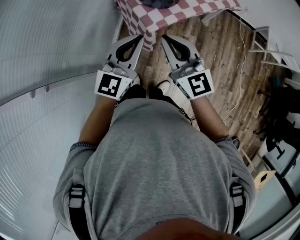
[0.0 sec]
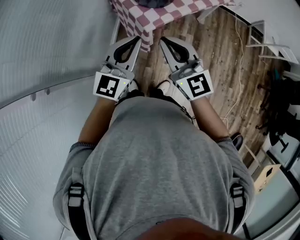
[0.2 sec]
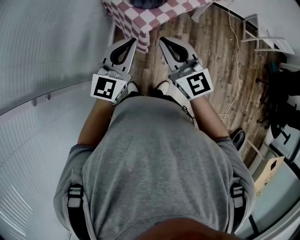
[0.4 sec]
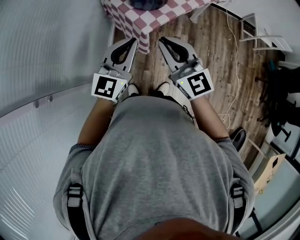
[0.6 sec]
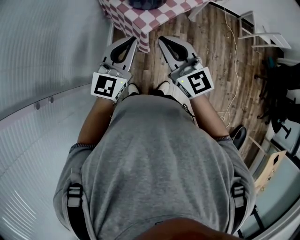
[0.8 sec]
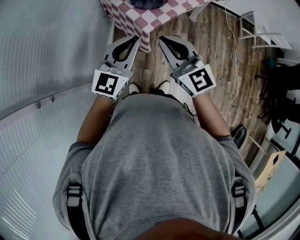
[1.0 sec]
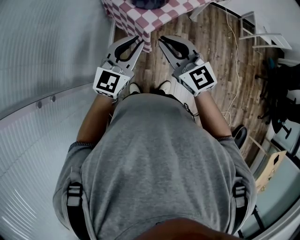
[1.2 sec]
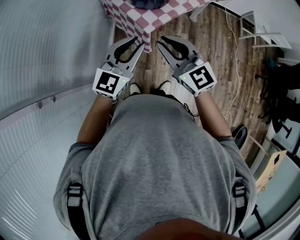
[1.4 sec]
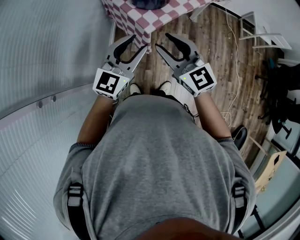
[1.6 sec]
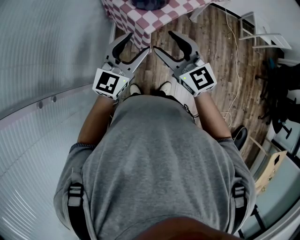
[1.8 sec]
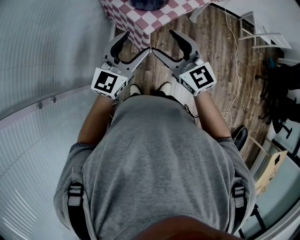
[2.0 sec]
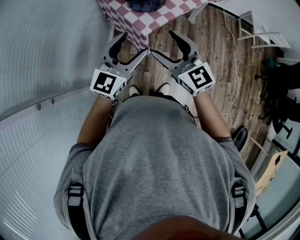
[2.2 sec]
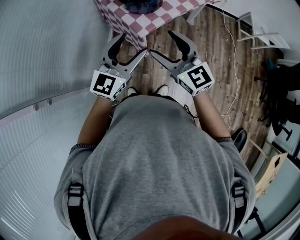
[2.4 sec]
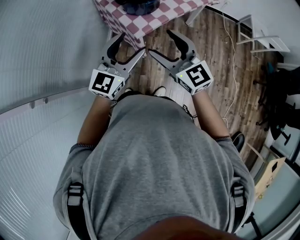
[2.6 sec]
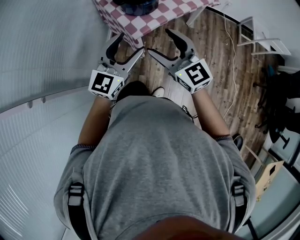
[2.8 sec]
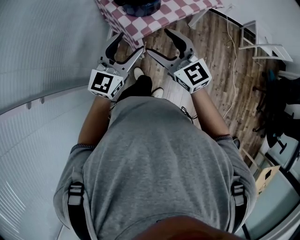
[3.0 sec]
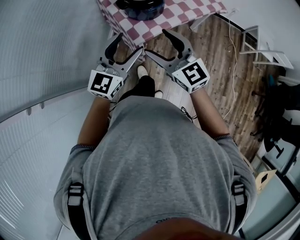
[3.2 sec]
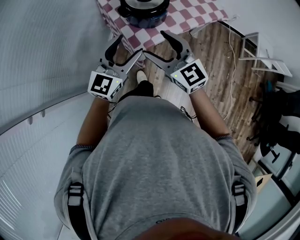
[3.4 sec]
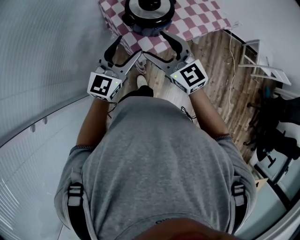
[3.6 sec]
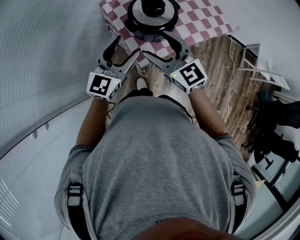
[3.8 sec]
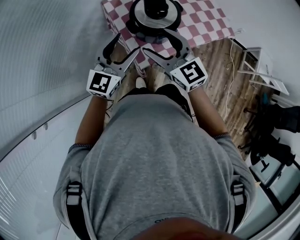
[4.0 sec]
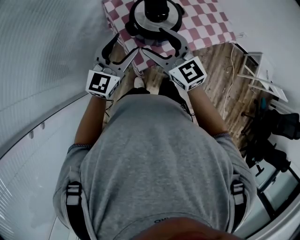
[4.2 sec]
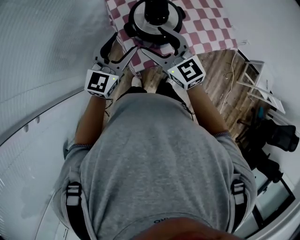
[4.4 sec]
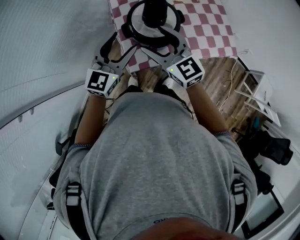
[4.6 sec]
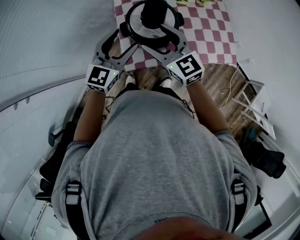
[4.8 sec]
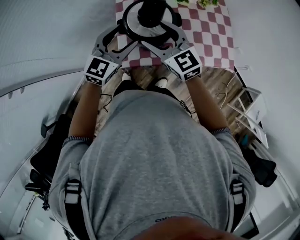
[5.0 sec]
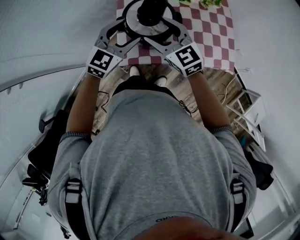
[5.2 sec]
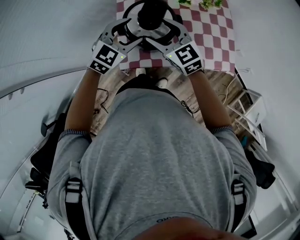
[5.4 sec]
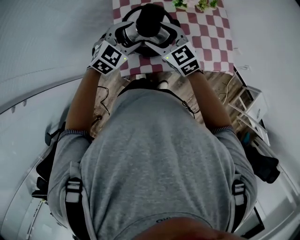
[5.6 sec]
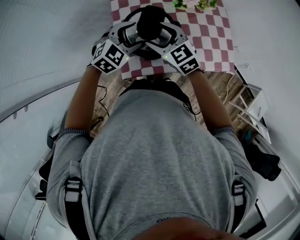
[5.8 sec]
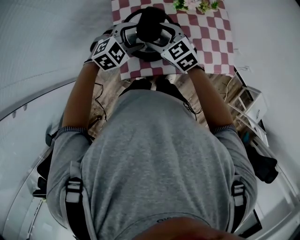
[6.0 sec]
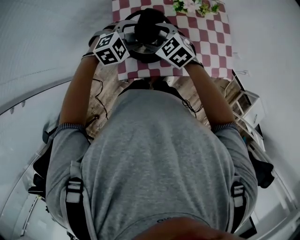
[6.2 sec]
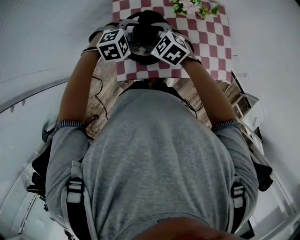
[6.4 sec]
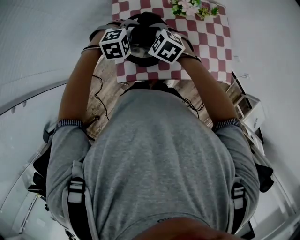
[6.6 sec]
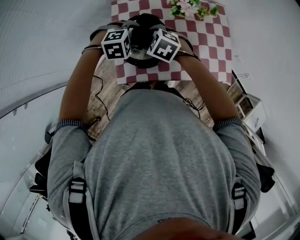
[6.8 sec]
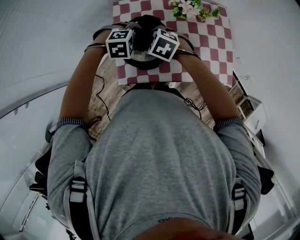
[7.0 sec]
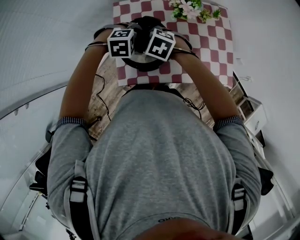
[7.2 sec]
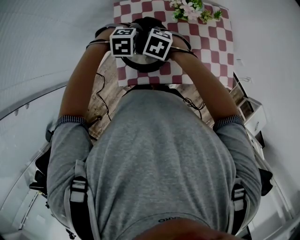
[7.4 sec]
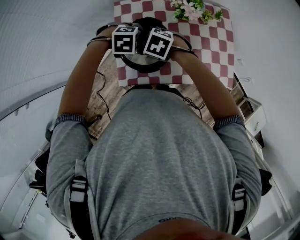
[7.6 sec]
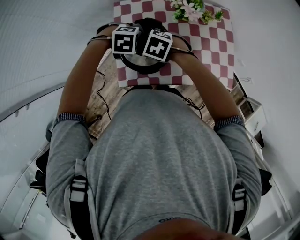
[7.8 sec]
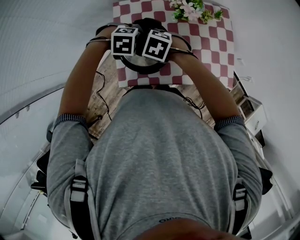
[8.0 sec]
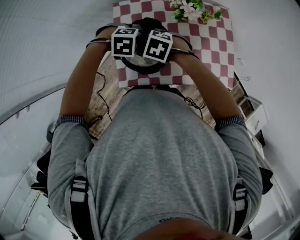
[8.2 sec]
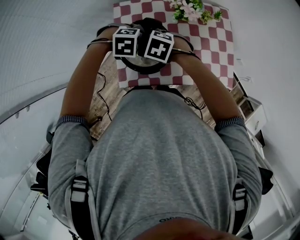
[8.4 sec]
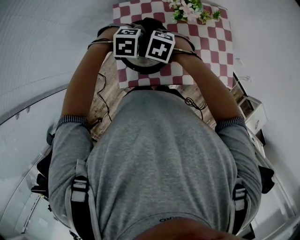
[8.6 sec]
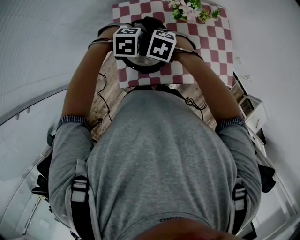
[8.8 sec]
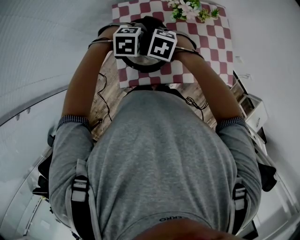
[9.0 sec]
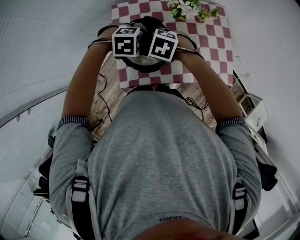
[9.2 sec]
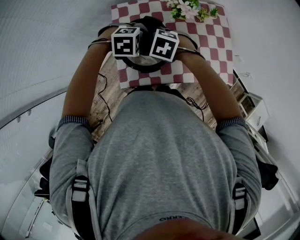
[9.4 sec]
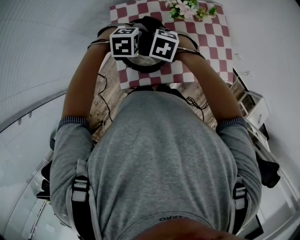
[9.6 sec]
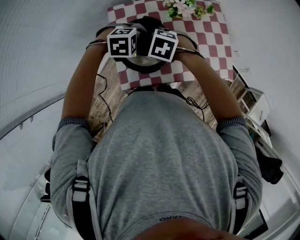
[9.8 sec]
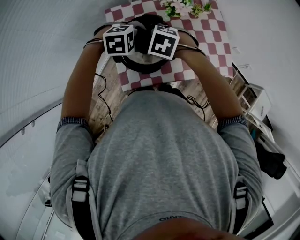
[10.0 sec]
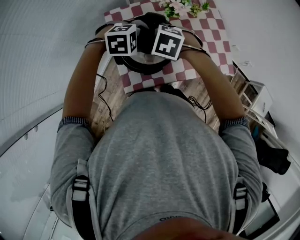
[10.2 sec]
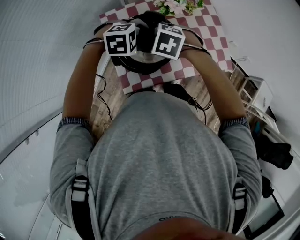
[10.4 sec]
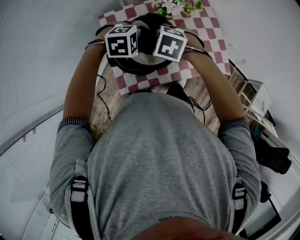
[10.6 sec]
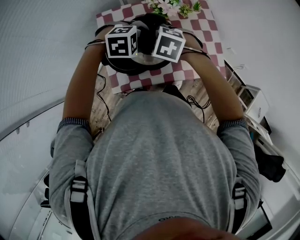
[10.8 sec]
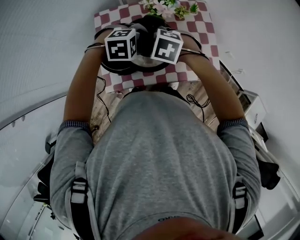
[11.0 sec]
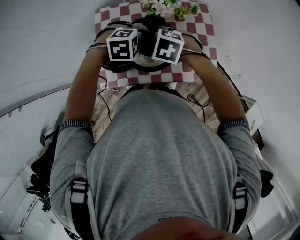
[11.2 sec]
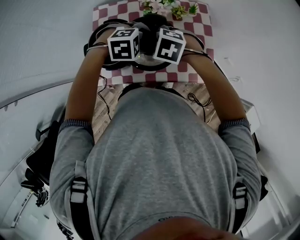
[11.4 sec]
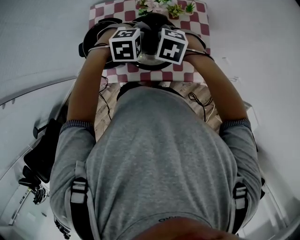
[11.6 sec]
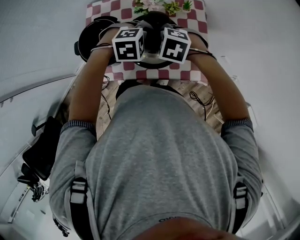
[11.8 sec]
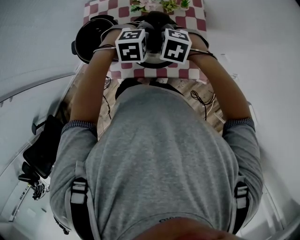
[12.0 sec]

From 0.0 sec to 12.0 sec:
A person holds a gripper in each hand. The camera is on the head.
From 0.0 sec to 1.6 sec: The left gripper shifts by about 5 cm, and opens. Meanwhile the right gripper moves some 5 cm, and opens its fingers.
From 1.6 sec to 3.0 sec: The two grippers go roughly 10 cm to the right. The left gripper opens its fingers. Meanwhile the right gripper opens.
From 3.0 sec to 4.4 sec: Both grippers move forward, about 25 cm.
From 4.4 sec to 6.0 sec: The right gripper moves forward, downward and to the right, approximately 15 cm, and swivels about 30 degrees; the left gripper is displaced to the right, downward and forward by about 20 cm, and tilts its fingers approximately 40 degrees downward.
From 6.0 sec to 7.6 sec: Both grippers travel together downward, some 5 cm. The left gripper tips its fingers downward by about 30 degrees, while the right gripper angles its fingers downward, by approximately 30 degrees.
From 7.6 sec to 9.0 sec: The grippers make only small movements.
From 9.0 sec to 10.4 sec: The left gripper ends up approximately 5 cm from where it was. The right gripper shifts by approximately 5 cm.
From 10.4 sec to 12.0 sec: The left gripper moves some 25 cm. Meanwhile the right gripper ends up about 25 cm from where it was.

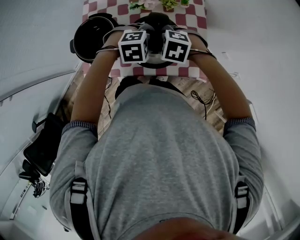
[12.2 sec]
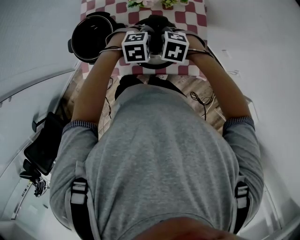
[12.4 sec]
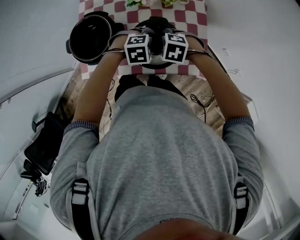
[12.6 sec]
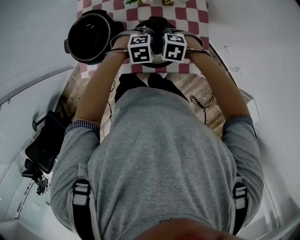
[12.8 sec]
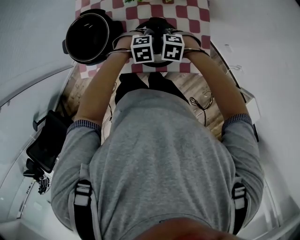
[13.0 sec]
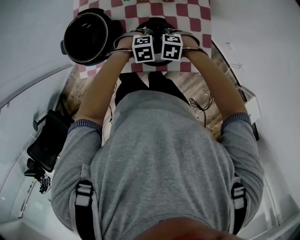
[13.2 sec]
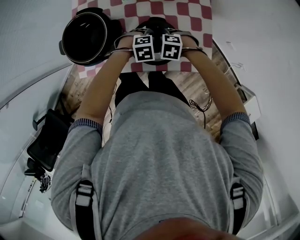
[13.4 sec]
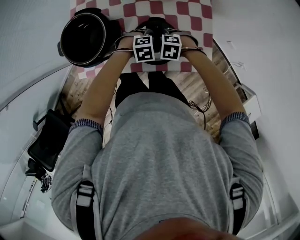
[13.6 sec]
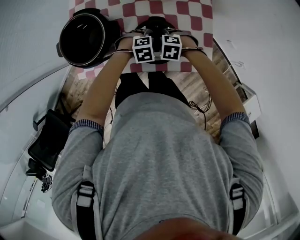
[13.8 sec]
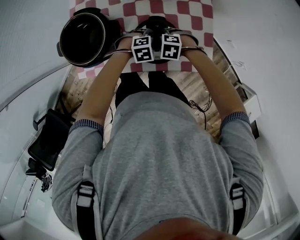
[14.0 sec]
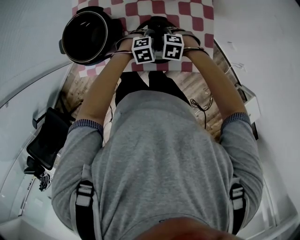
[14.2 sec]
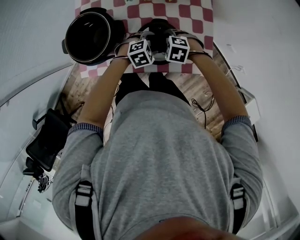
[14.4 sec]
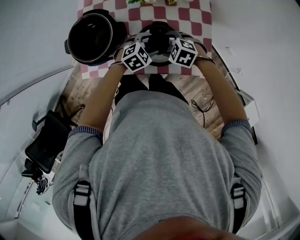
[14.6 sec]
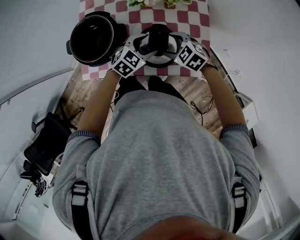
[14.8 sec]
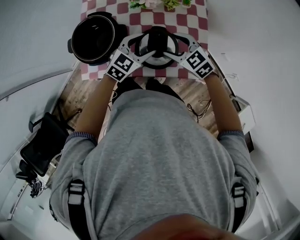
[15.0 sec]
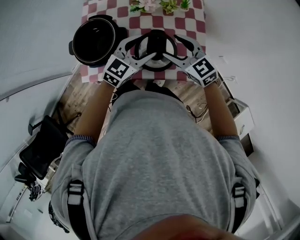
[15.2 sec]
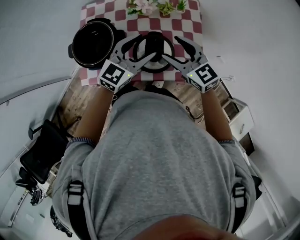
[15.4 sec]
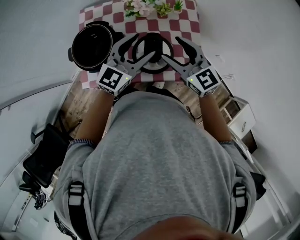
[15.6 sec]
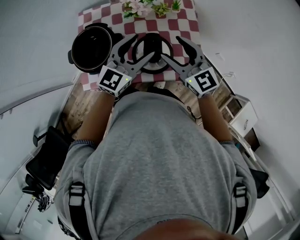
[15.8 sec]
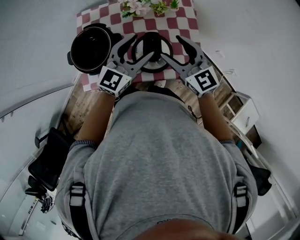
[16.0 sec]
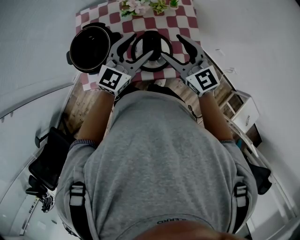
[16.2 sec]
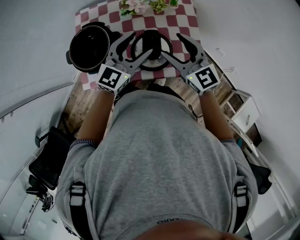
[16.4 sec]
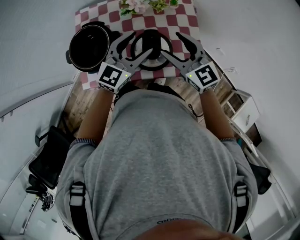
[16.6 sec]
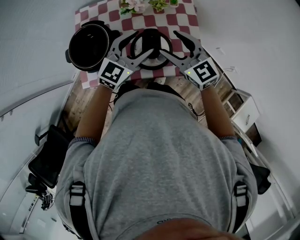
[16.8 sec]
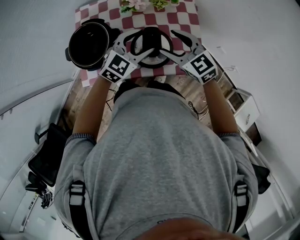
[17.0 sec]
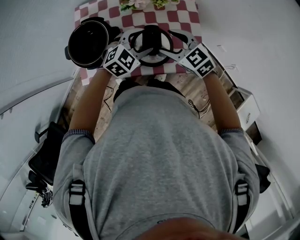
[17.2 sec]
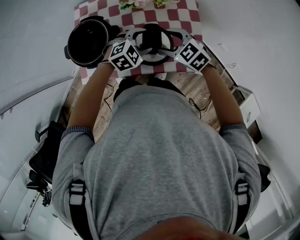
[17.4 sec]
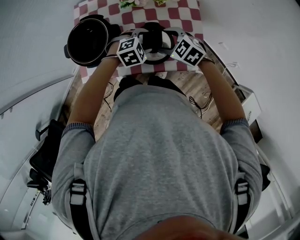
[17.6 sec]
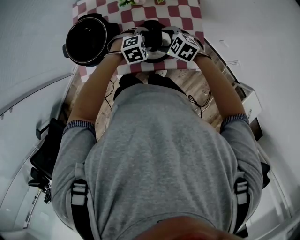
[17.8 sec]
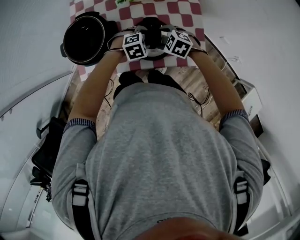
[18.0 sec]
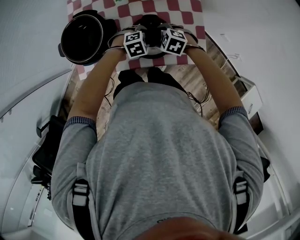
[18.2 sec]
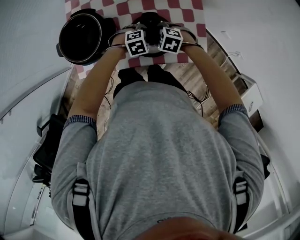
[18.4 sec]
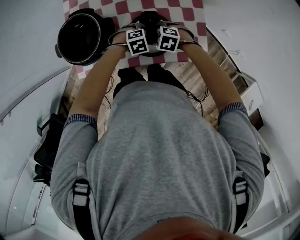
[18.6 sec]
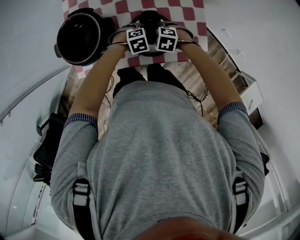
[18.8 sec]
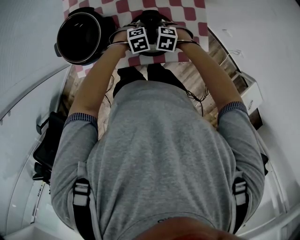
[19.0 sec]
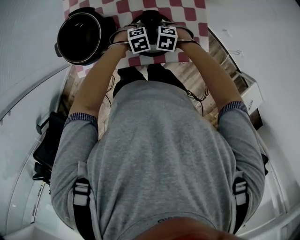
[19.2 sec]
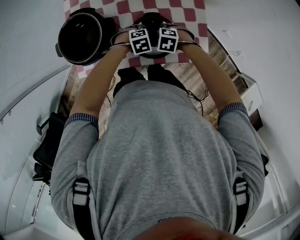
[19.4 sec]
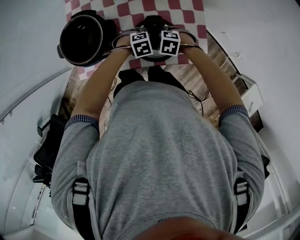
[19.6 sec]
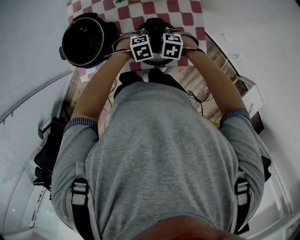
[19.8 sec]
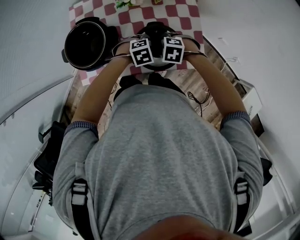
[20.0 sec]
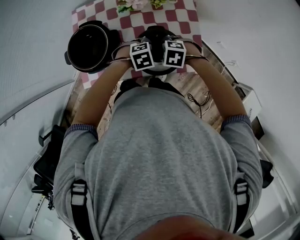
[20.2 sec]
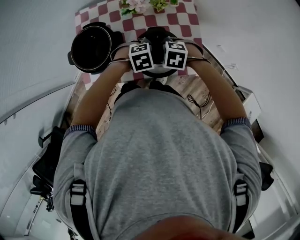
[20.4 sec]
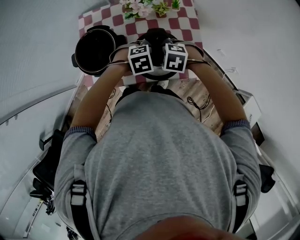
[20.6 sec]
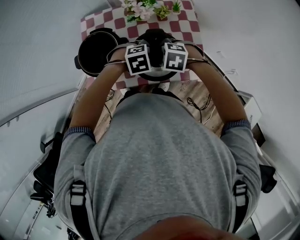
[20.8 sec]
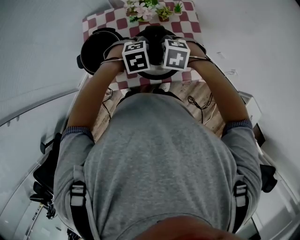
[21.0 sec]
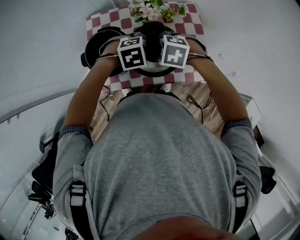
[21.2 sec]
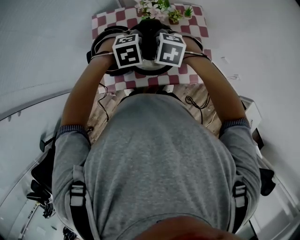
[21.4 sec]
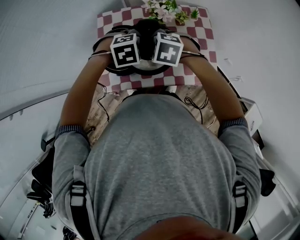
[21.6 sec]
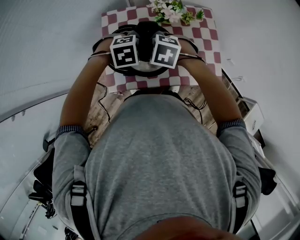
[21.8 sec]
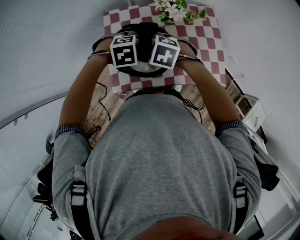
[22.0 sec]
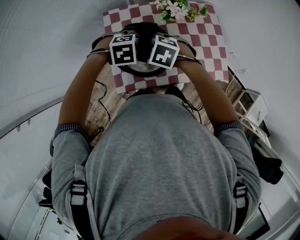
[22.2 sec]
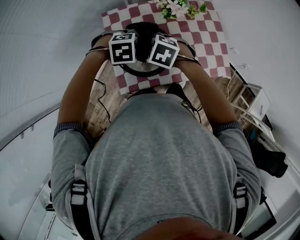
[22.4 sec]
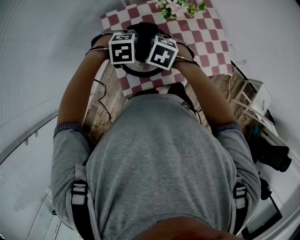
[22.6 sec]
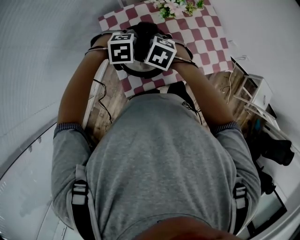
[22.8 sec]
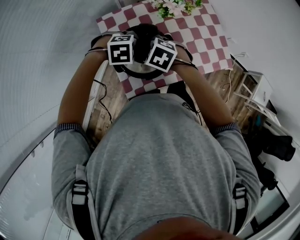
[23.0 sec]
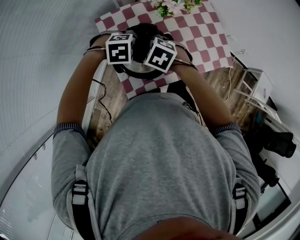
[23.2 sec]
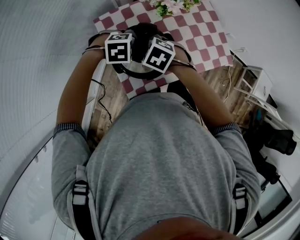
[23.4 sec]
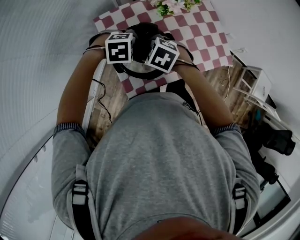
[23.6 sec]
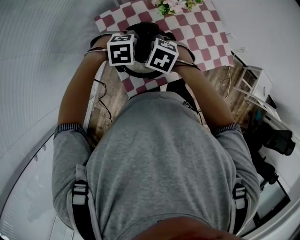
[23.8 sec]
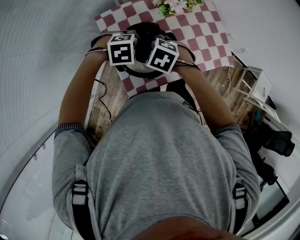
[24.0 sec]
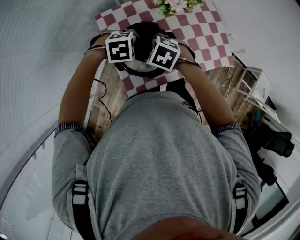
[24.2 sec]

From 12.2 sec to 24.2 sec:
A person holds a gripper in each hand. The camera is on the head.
From 12.2 sec to 13.8 sec: The grippers both shift downward by some 20 cm.
From 13.8 sec to 15.2 sec: Both grippers travel together upward, roughly 25 cm. The right gripper tilts its fingers some 50 degrees upward. The left gripper tilts its fingers roughly 50 degrees upward.
From 15.2 sec to 16.6 sec: The two grippers go roughly 5 cm upward.
From 16.6 sec to 18.2 sec: The grippers both shift downward by roughly 25 cm. The right gripper points its fingers about 50 degrees further downward; the left gripper angles its fingers downward, by about 60 degrees.
From 18.2 sec to 19.8 sec: There are only small adjustments of the grippers.
From 19.8 sec to 21.2 sec: The grippers both shift upward by some 20 cm.
From 21.2 sec to 22.6 sec: The right gripper moves about 20 cm, and rotates about 20 degrees. The left gripper ends up some 20 cm from where it was.
From 22.6 sec to 24.2 sec: The grippers move only a little.
